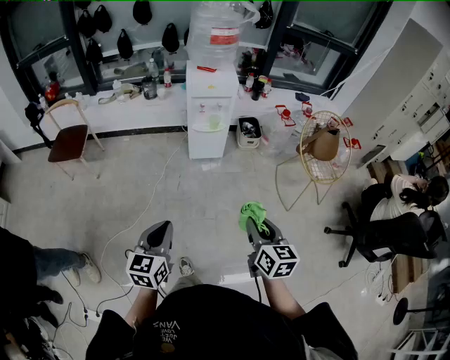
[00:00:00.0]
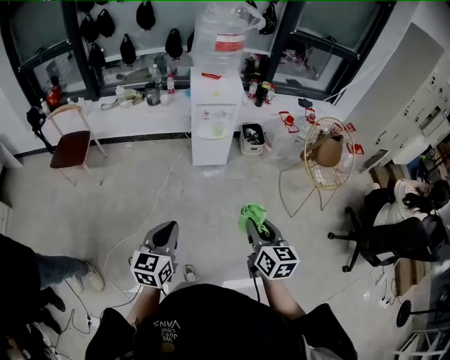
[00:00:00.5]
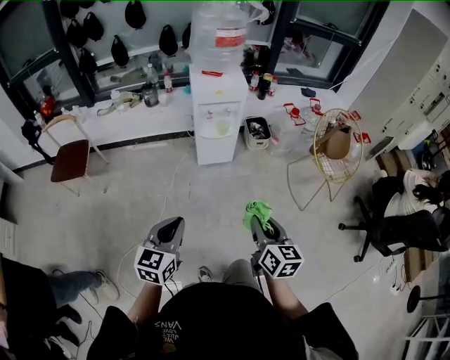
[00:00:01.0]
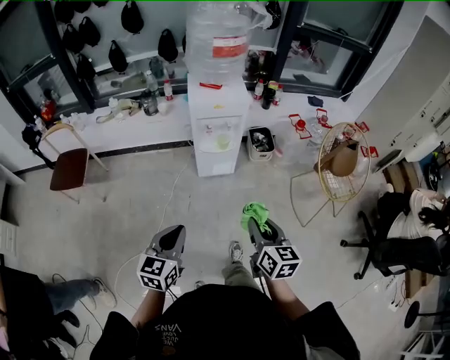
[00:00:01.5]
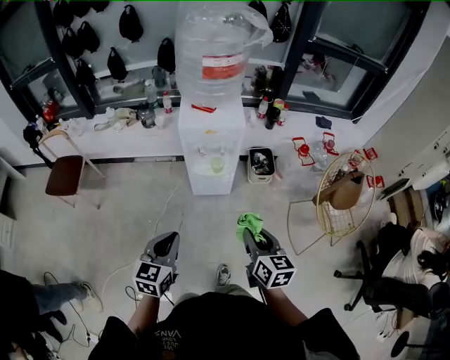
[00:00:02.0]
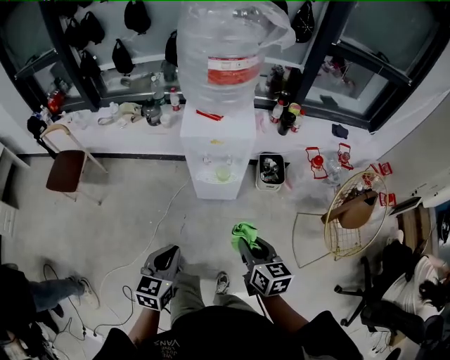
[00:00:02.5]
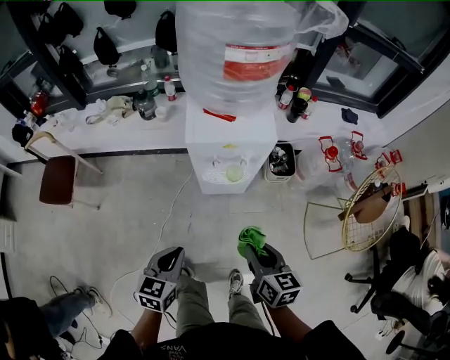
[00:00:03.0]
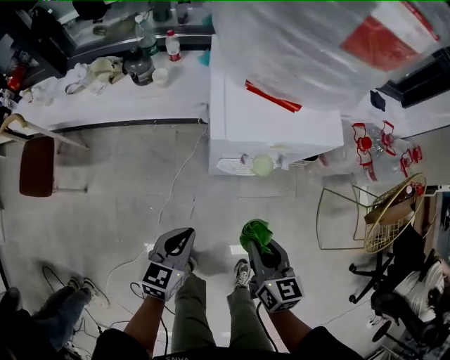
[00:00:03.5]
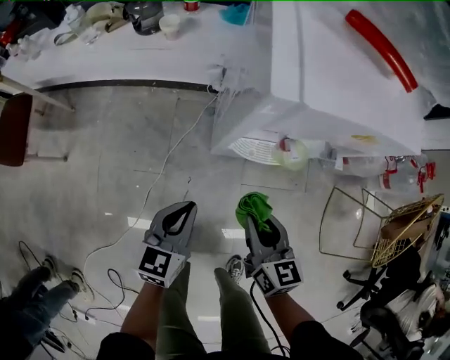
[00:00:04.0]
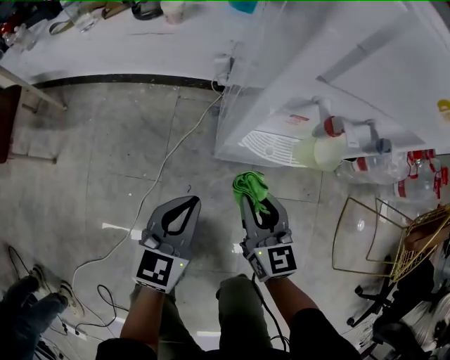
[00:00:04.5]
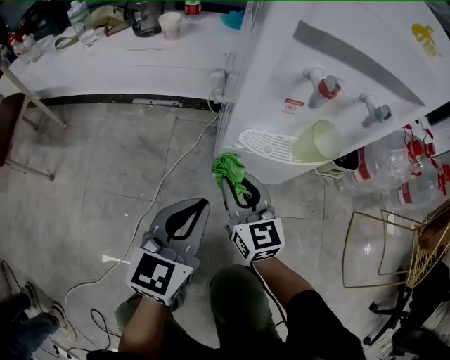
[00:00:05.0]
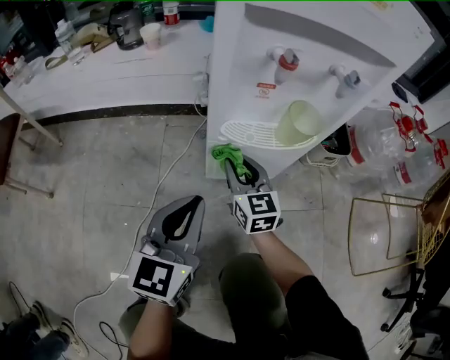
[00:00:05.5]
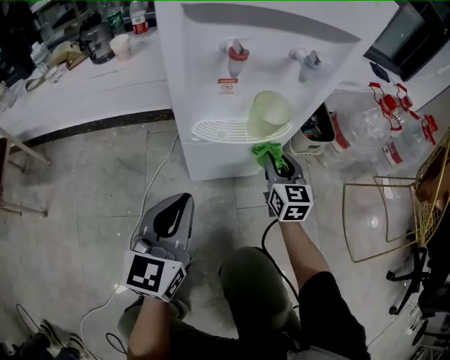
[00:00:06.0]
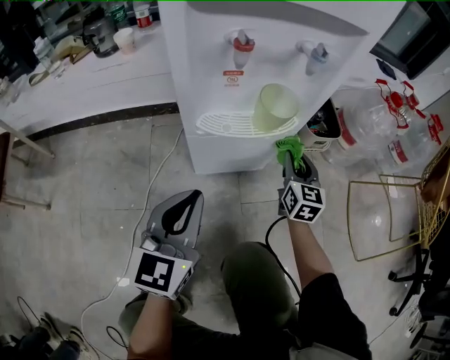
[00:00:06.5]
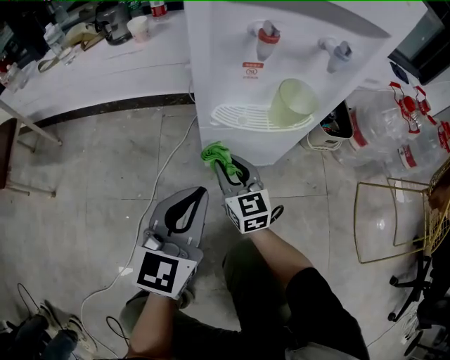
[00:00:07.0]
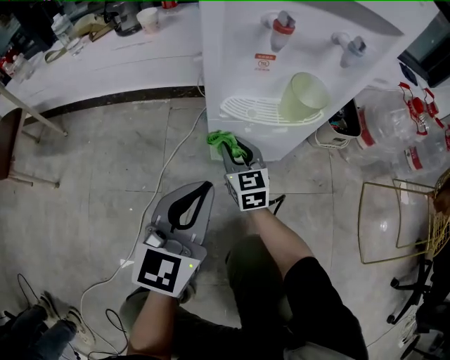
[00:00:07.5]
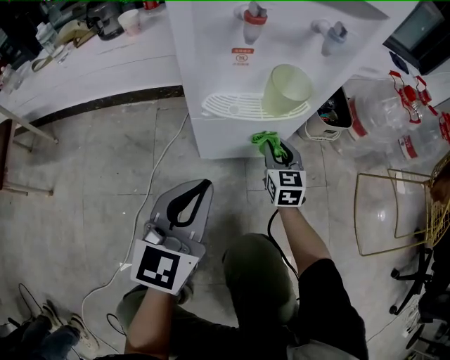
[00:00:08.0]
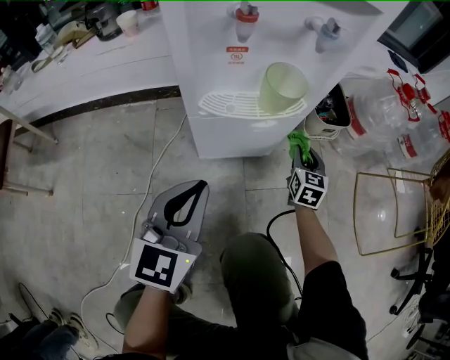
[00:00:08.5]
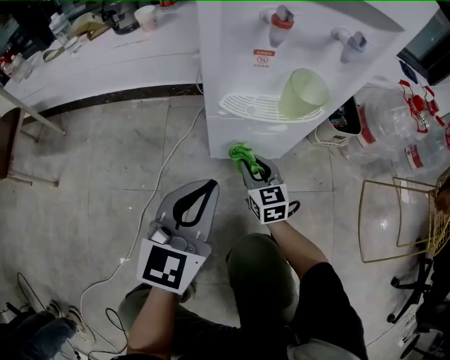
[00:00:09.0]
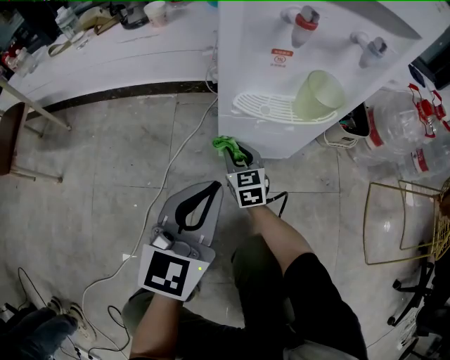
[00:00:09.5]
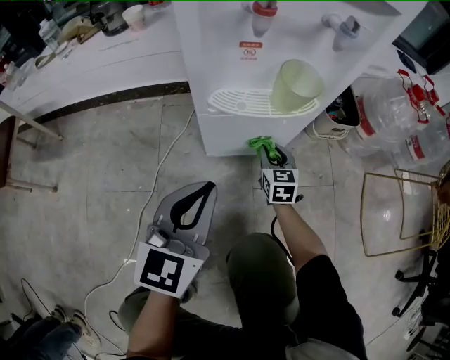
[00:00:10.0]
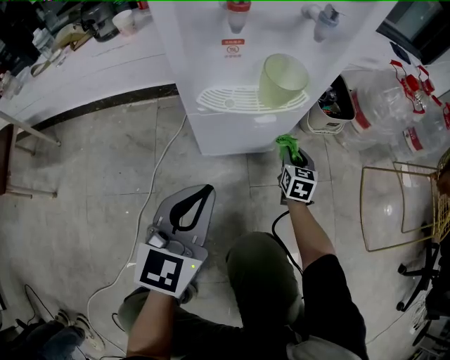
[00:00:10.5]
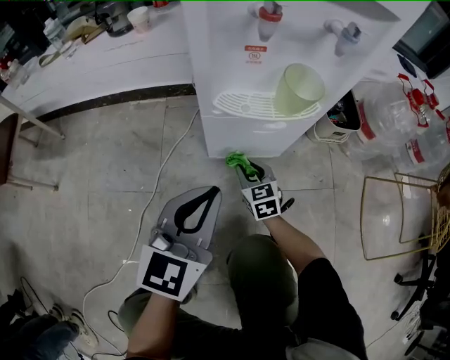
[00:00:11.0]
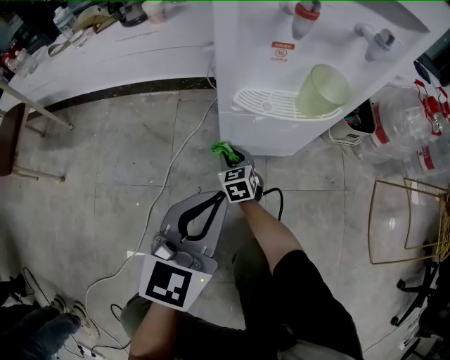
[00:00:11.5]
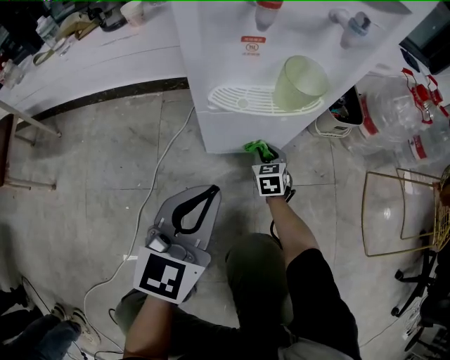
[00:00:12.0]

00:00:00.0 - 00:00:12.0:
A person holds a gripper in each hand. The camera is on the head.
00:00:00.0 - 00:00:02.0: The two grippers go roughly 30 cm forward.
00:00:02.0 - 00:00:04.0: The left gripper moves downward and forward, approximately 40 cm. Meanwhile the right gripper shifts approximately 40 cm downward, forward and to the left.
00:00:04.0 - 00:00:06.0: The right gripper goes approximately 30 cm downward, to the right and forward, and changes its angle by roughly 30 degrees. Meanwhile the left gripper heads downward and to the right, covering about 10 cm.
00:00:06.0 - 00:00:08.0: The right gripper moves left and right over approximately 25 cm, changing direction 2 times.
00:00:08.0 - 00:00:10.0: The right gripper swings left and right, about 30 cm each way, with 2 reversals.
00:00:10.0 - 00:00:12.0: The right gripper swings left and right, about 30 cm each way, with 2 reversals.

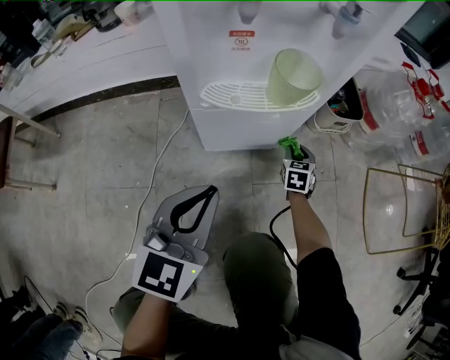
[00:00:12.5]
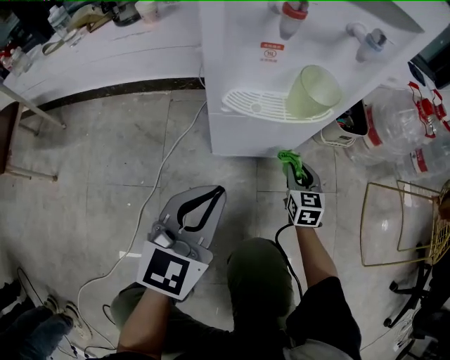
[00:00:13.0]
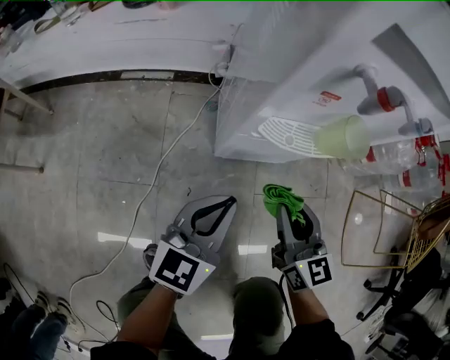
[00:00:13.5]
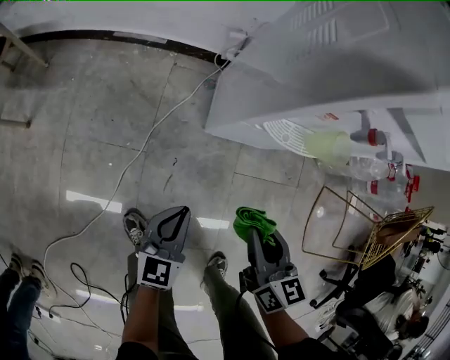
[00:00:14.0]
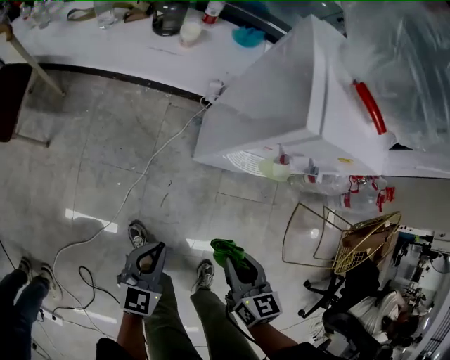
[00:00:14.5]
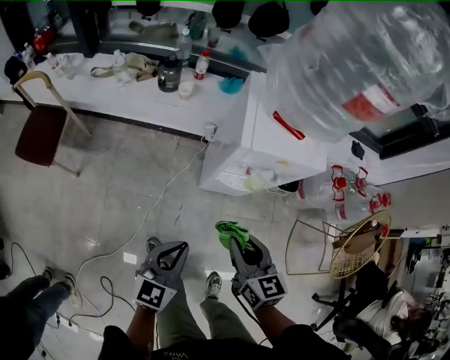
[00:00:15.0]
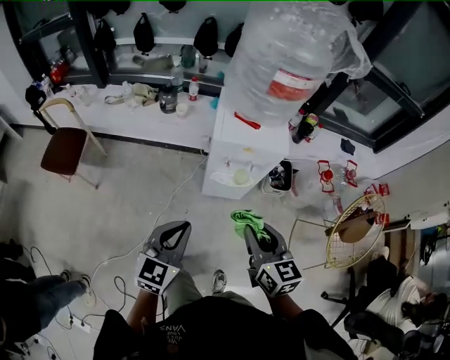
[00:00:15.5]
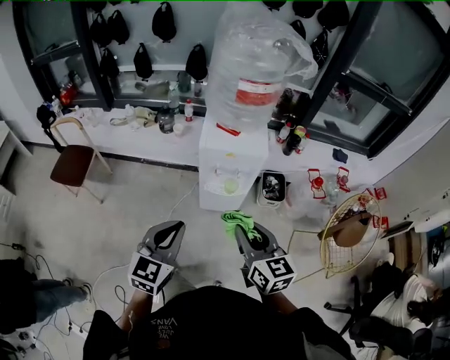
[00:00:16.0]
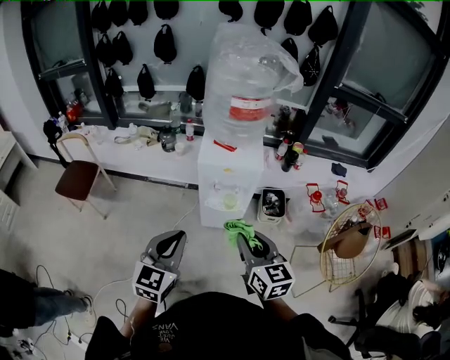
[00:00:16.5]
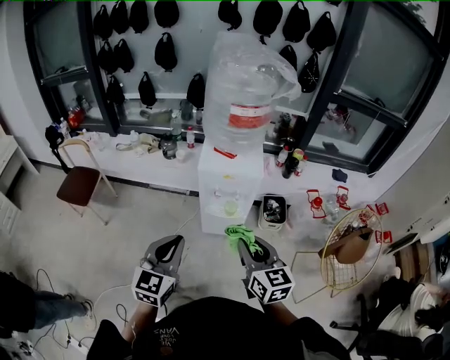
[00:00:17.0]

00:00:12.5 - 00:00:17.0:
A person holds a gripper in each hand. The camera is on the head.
00:00:12.5 - 00:00:14.5: The left gripper ends up some 25 cm from where it was, while the right gripper heads upward, covering about 40 cm, and turns by some 30 degrees.
00:00:14.5 - 00:00:17.0: The right gripper heads upward and to the right, covering some 40 cm, and rotates roughly 30 degrees. Meanwhile the left gripper travels upward by about 40 cm, and changes its angle by some 30 degrees.

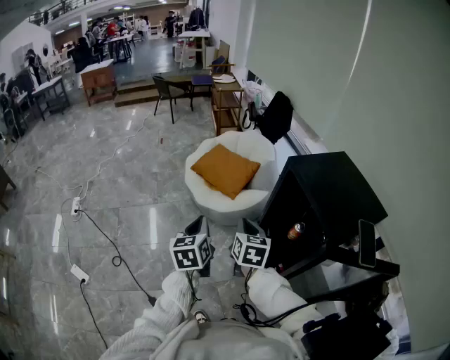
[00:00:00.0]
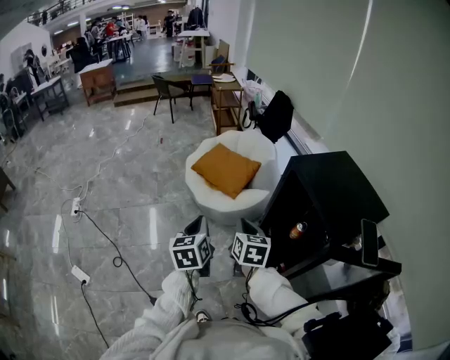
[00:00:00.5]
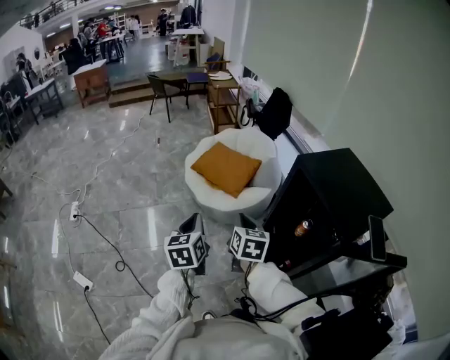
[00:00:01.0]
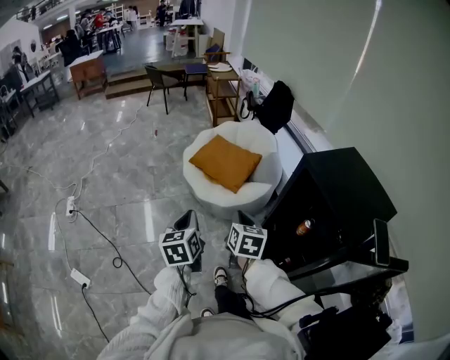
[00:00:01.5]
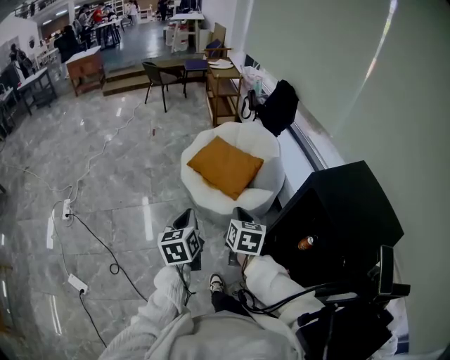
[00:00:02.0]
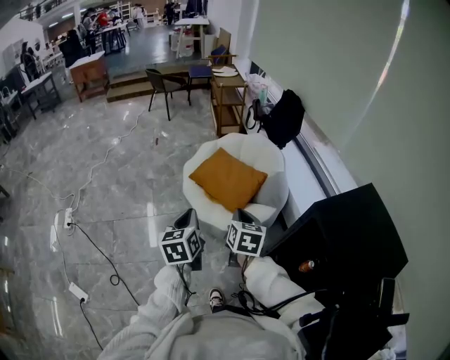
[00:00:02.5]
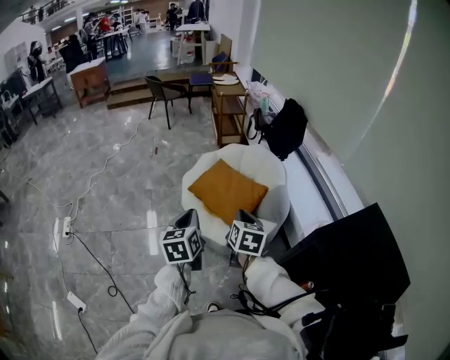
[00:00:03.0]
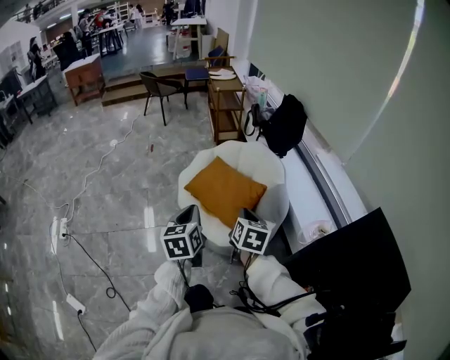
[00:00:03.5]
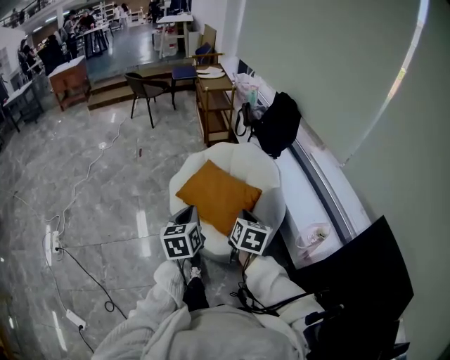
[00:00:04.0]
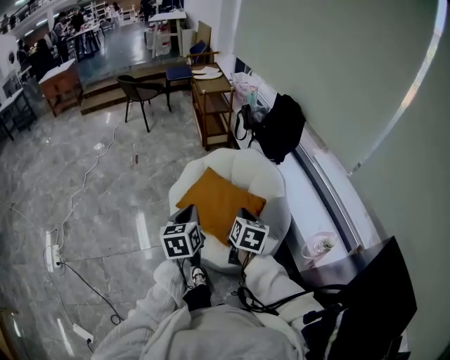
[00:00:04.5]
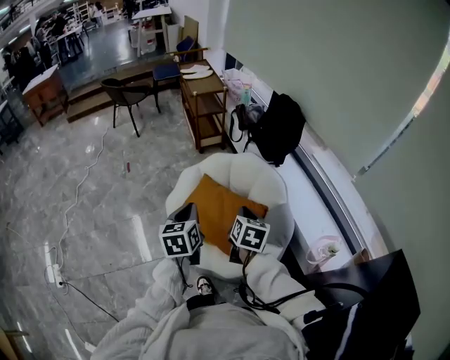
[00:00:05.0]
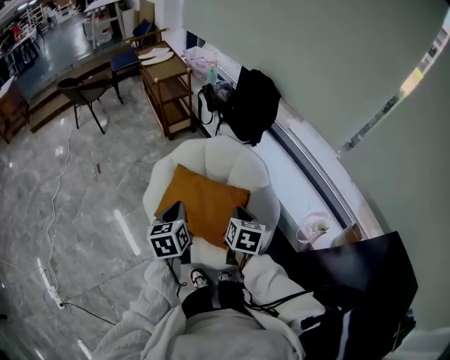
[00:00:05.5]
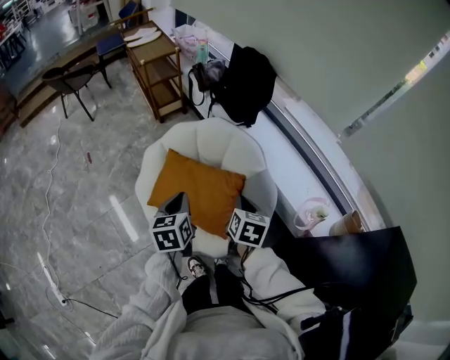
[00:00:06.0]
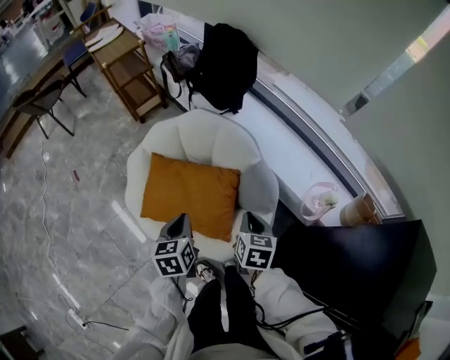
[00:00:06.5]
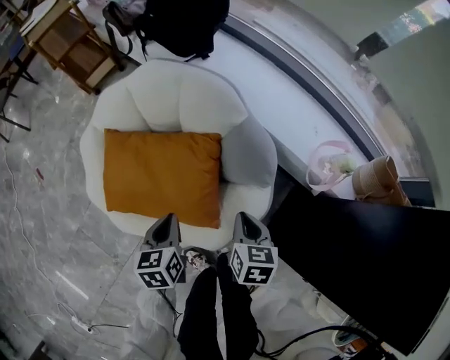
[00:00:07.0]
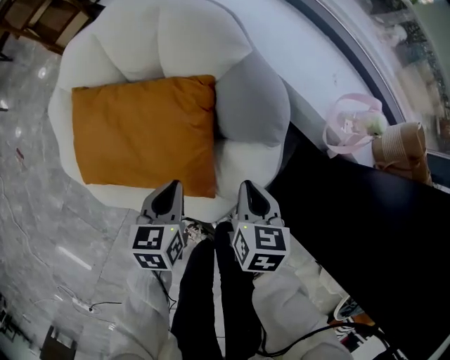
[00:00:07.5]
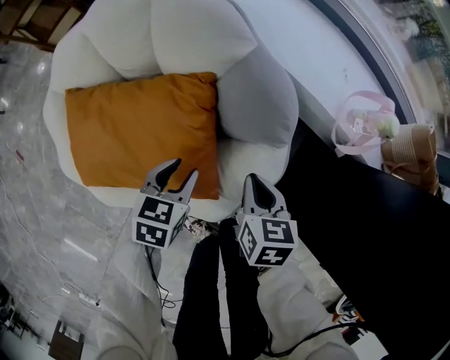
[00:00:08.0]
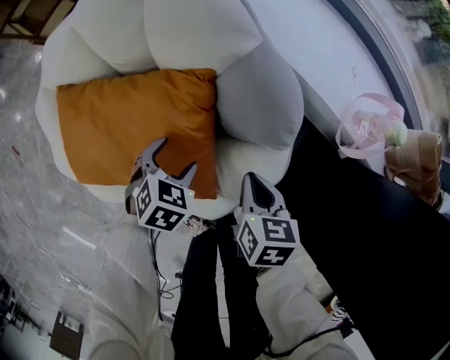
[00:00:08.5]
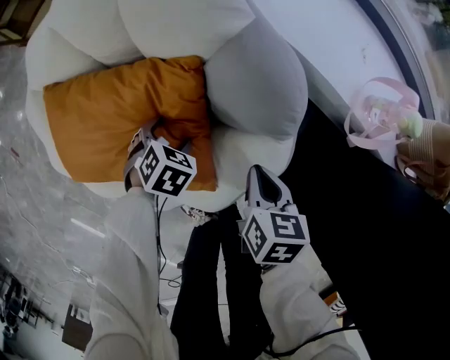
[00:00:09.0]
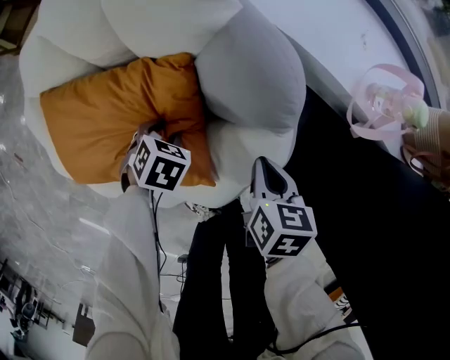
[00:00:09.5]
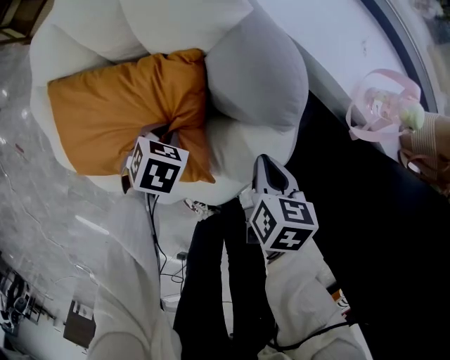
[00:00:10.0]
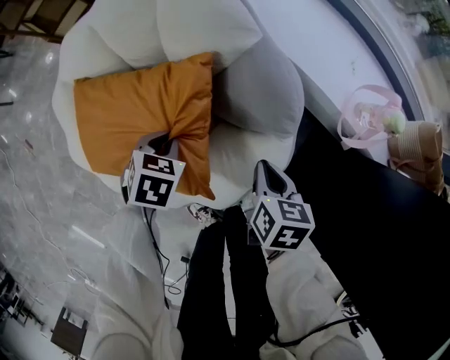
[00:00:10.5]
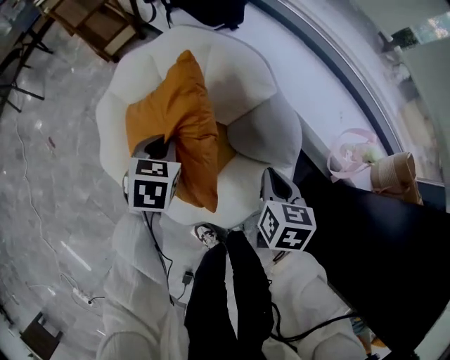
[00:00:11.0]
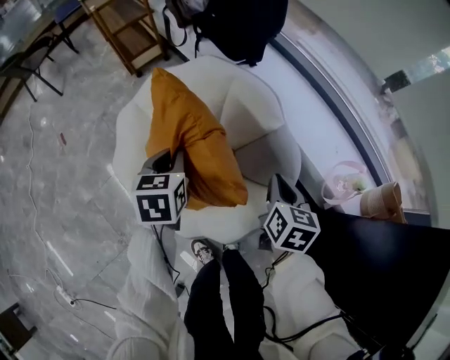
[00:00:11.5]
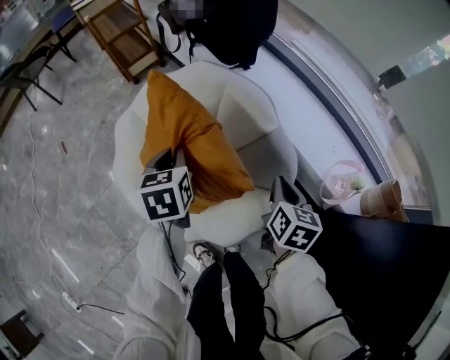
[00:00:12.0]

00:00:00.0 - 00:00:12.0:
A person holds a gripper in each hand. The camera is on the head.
00:00:00.0 - 00:00:02.0: Both grippers travel together forward and to the left, some 15 cm.
00:00:02.0 - 00:00:04.0: Both grippers move forward, about 30 cm.
00:00:04.0 - 00:00:06.0: The grippers both shift forward by roughly 25 cm. The left gripper swivels approximately 20 degrees; the right gripper changes its angle by approximately 20 degrees.
00:00:06.0 - 00:00:08.0: The two grippers go some 35 cm downward. The left gripper rotates some 50 degrees, and opens up.
00:00:08.0 - 00:00:10.0: The right gripper ends up roughly 5 cm from where it was, while the left gripper moves downward, some 10 cm, changes its angle by some 30 degrees, and opens, then closes once more.
00:00:10.0 - 00:00:12.0: Both grippers travel together upward, about 30 cm. The right gripper swivels some 20 degrees. Meanwhile the left gripper tips its fingers upward by some 30 degrees.
